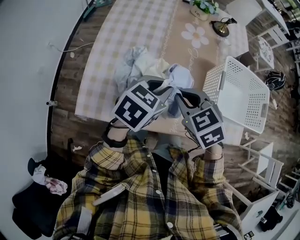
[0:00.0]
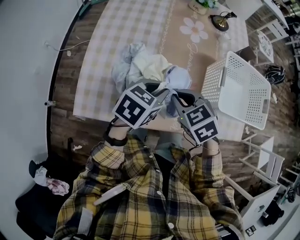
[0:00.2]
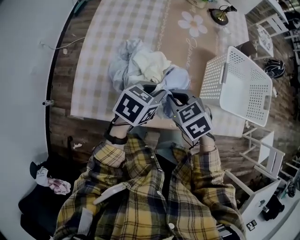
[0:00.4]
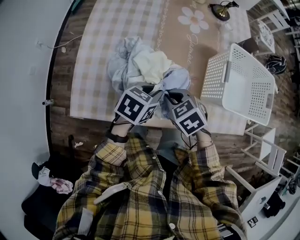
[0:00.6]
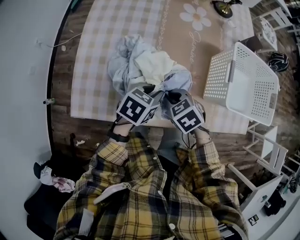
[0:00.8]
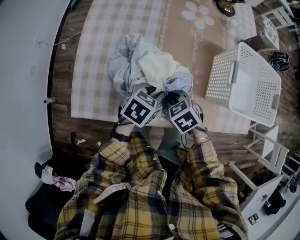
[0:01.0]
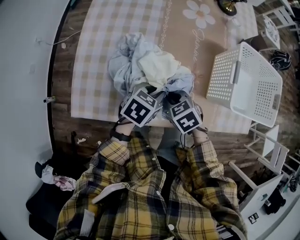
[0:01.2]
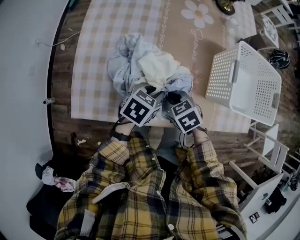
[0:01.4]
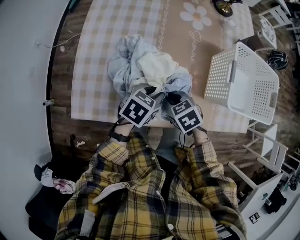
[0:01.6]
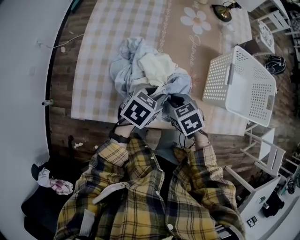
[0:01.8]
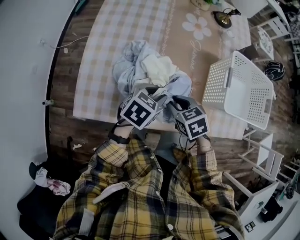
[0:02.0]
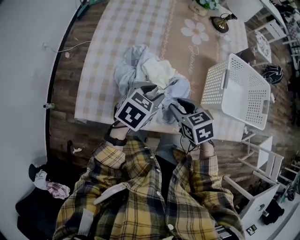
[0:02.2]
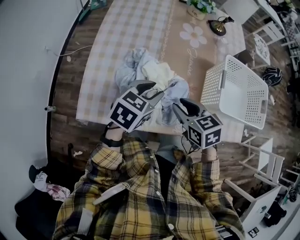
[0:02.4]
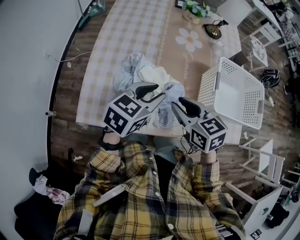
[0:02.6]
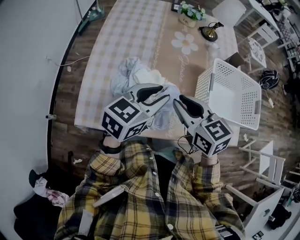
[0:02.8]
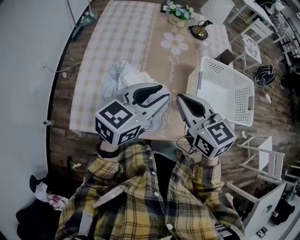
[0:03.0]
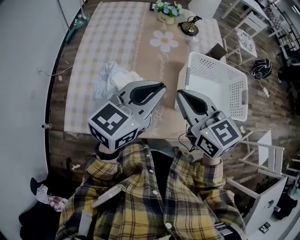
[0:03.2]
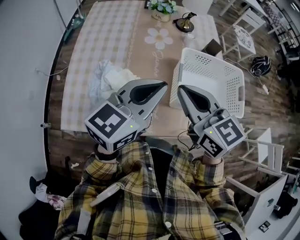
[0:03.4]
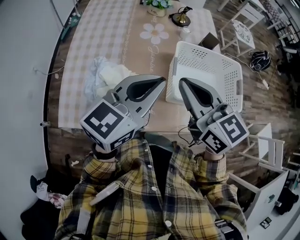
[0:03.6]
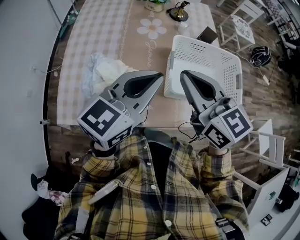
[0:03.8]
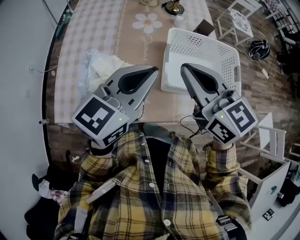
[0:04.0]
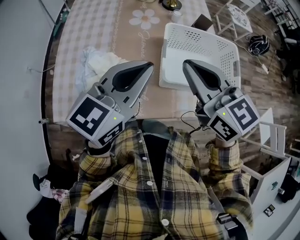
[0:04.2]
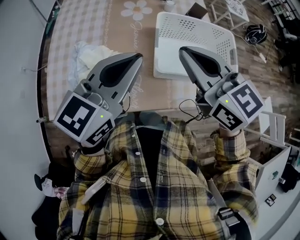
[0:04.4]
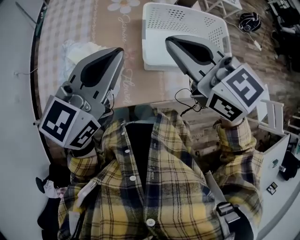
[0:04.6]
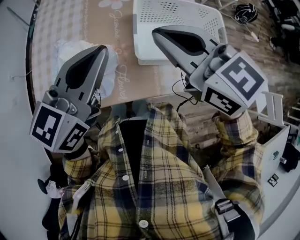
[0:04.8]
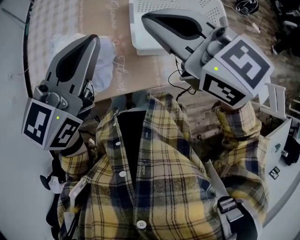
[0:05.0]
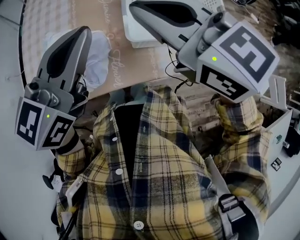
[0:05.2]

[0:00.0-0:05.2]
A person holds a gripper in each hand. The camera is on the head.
0:00.0 to 0:01.8: Both grippers move downward, approximately 15 cm.
0:01.8 to 0:03.4: The left gripper heads upward, covering approximately 30 cm, and angles its fingers upward, by about 40 degrees; the right gripper heads upward and to the right, covering some 35 cm, and tips its fingers upward by roughly 40 degrees.
0:03.4 to 0:05.2: The right gripper changes place by approximately 5 cm.

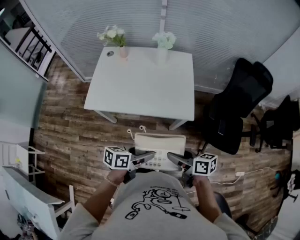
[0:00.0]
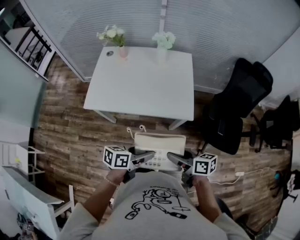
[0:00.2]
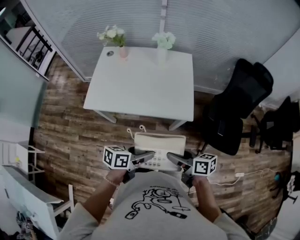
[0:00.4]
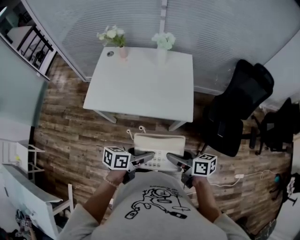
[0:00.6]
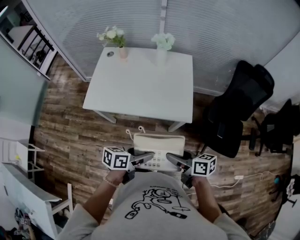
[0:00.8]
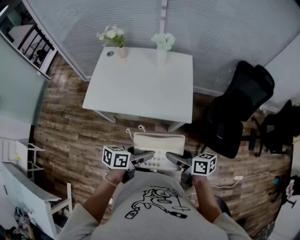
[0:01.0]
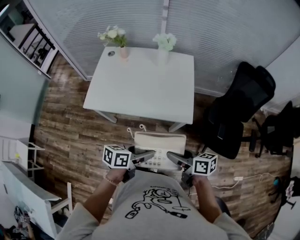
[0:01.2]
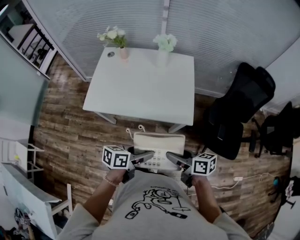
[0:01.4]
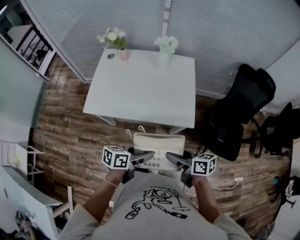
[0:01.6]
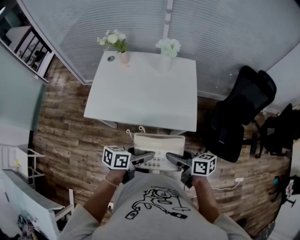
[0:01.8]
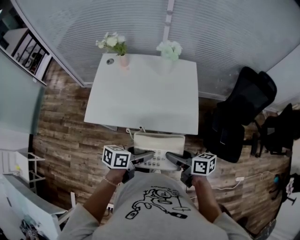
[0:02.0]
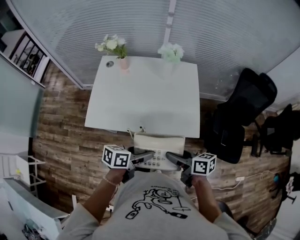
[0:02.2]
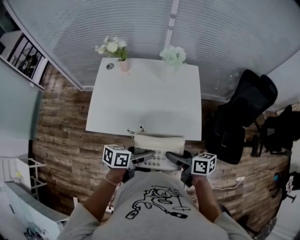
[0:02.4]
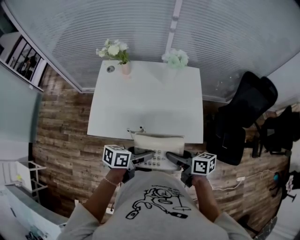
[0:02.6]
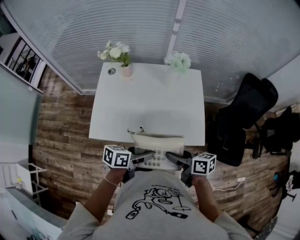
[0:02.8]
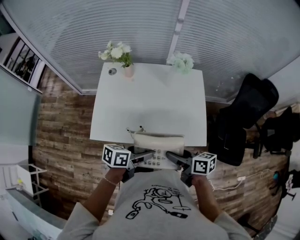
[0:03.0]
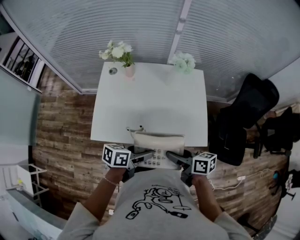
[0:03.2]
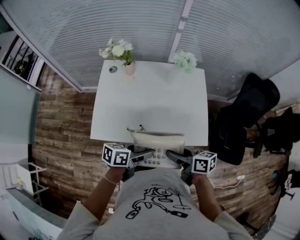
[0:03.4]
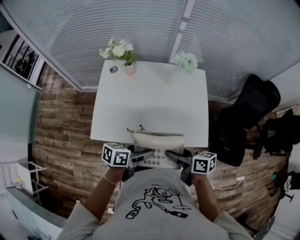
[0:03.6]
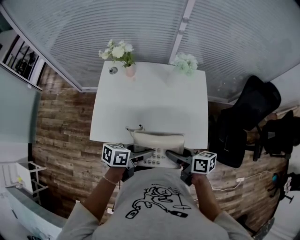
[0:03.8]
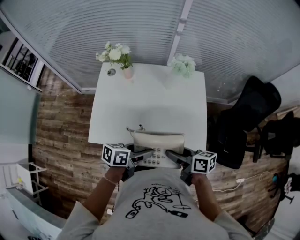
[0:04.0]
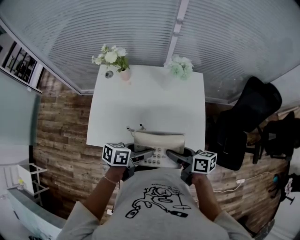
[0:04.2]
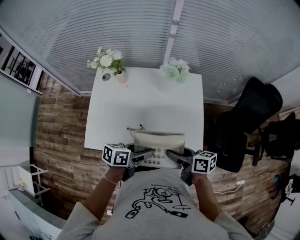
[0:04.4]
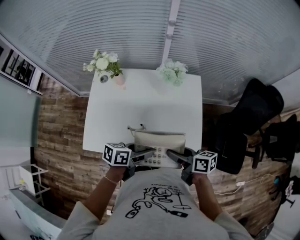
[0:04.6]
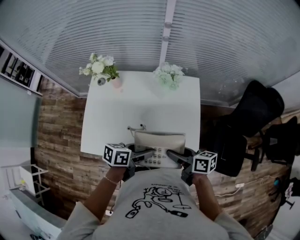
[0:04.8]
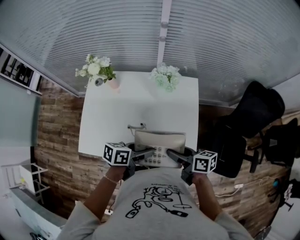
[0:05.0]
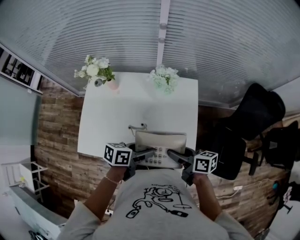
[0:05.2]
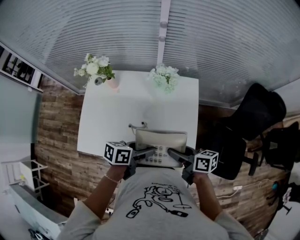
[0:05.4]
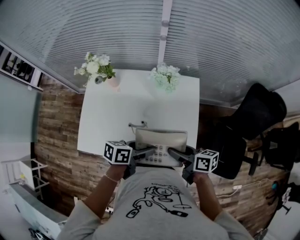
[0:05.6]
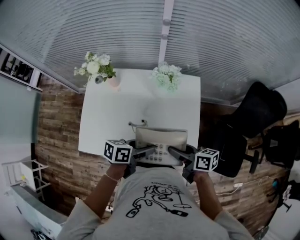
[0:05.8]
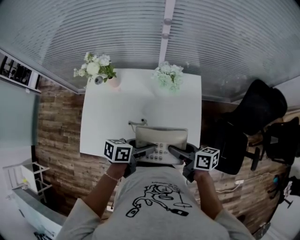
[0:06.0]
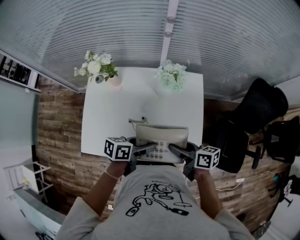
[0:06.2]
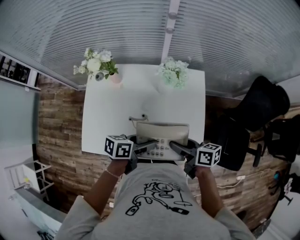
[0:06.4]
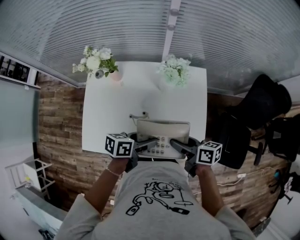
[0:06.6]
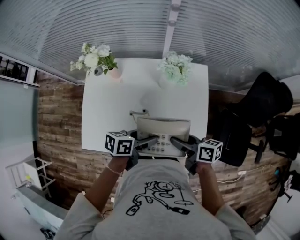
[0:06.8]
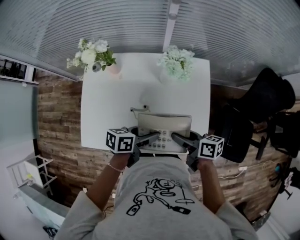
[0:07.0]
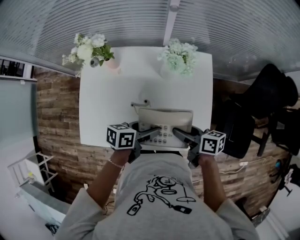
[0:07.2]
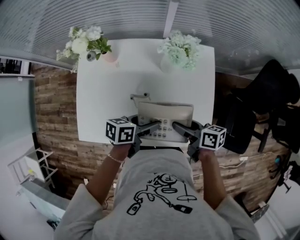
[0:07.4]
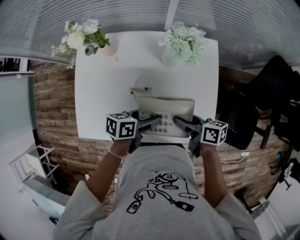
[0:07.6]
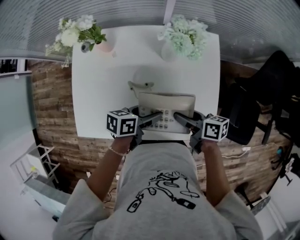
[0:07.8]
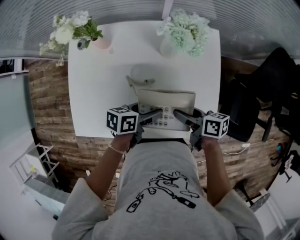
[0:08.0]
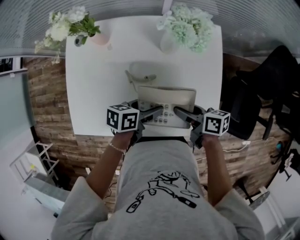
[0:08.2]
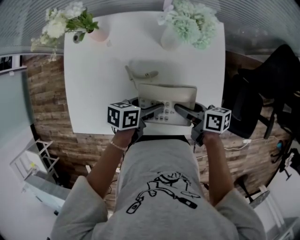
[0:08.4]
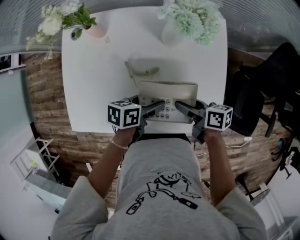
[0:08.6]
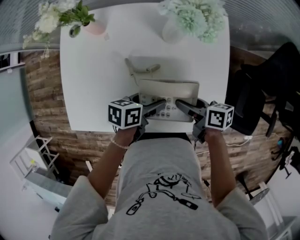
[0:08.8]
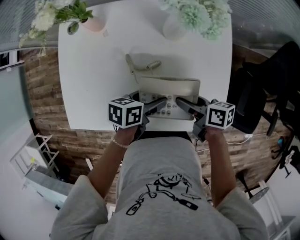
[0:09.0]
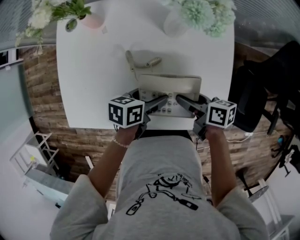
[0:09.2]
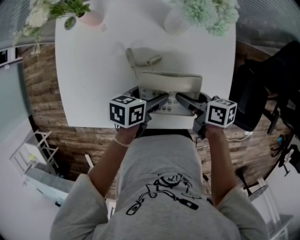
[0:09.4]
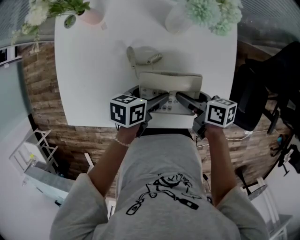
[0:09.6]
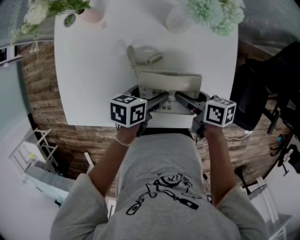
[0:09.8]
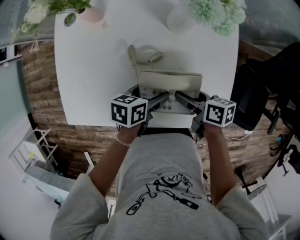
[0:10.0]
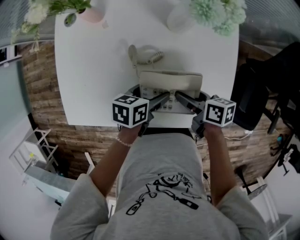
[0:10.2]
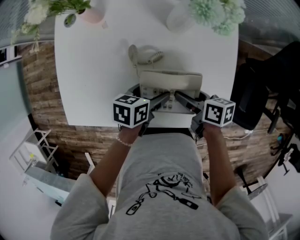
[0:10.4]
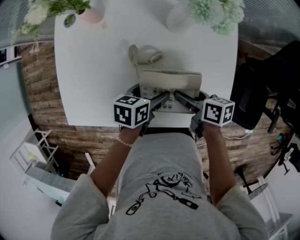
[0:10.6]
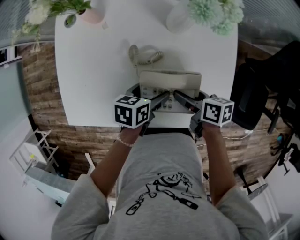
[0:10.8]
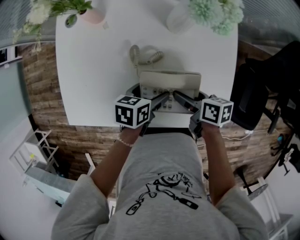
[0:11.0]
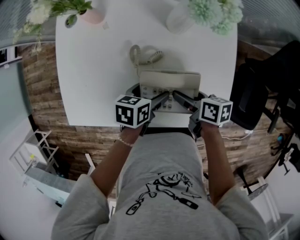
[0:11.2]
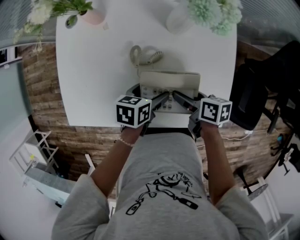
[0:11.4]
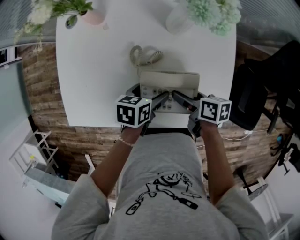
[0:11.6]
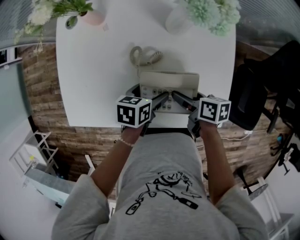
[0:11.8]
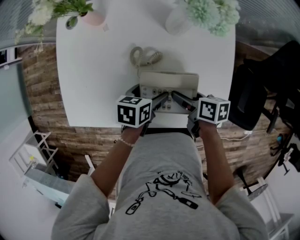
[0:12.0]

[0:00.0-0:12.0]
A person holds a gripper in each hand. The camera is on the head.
0:00.0 to 0:01.6: There are only small adjustments of the grippers.
0:01.6 to 0:03.0: The two grippers go about 20 cm forward and to the left.
0:03.0 to 0:04.4: The two grippers go approximately 10 cm forward.
0:04.4 to 0:06.0: The two grippers go roughly 10 cm forward.
0:06.0 to 0:07.6: The grippers both shift downward by some 10 cm.
0:07.6 to 0:09.0: Both grippers move downward, approximately 5 cm.
0:09.0 to 0:12.0: The grippers stay close to where they were, moving slightly.

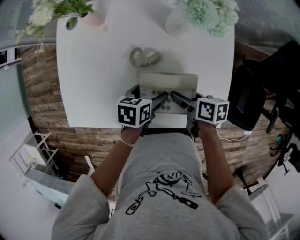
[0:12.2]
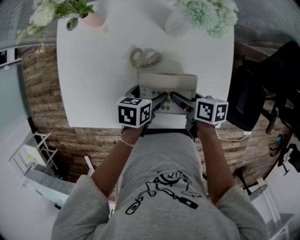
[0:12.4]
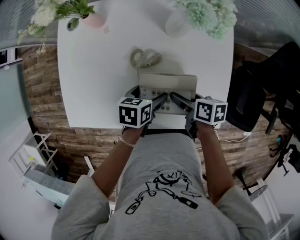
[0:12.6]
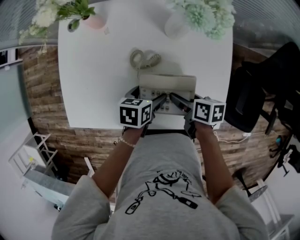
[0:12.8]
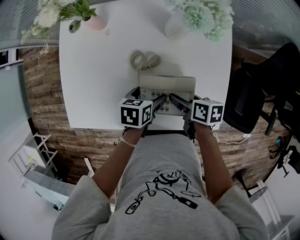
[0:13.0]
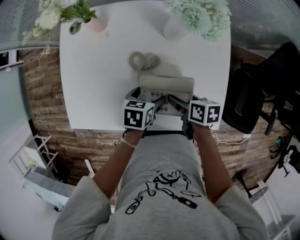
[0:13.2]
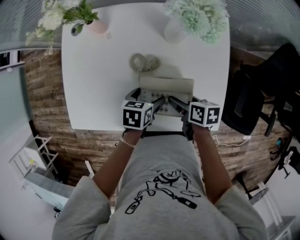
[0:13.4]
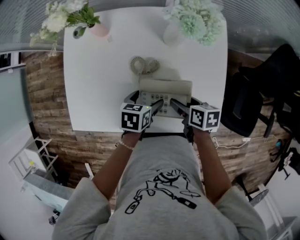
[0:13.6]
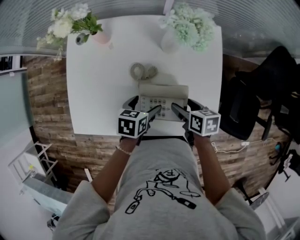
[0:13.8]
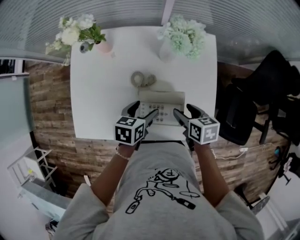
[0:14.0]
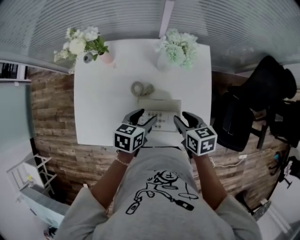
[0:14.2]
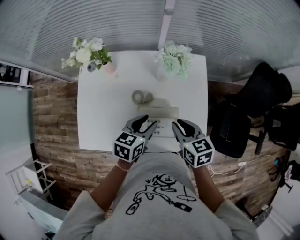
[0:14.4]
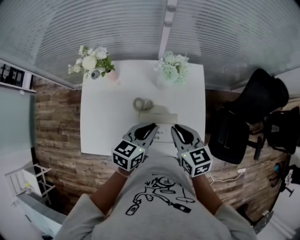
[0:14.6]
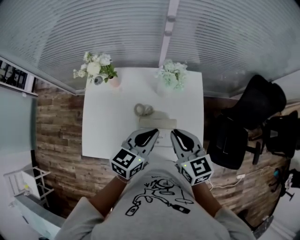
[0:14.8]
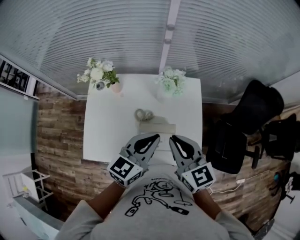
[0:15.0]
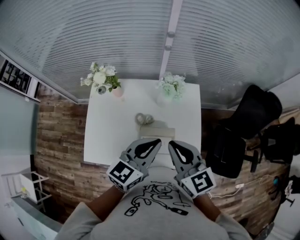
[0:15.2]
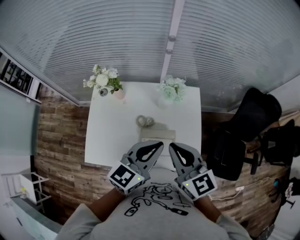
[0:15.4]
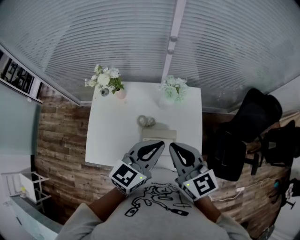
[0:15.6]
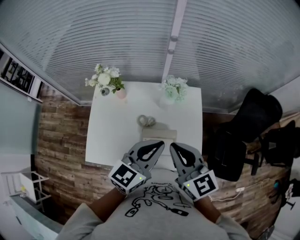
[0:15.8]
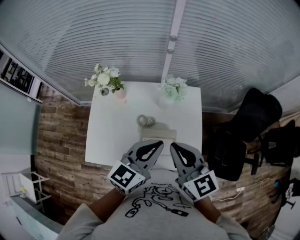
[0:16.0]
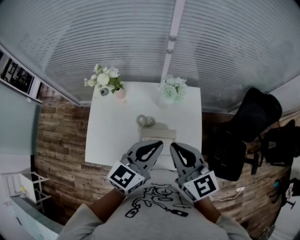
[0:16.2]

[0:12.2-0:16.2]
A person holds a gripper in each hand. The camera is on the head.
0:12.2 to 0:13.6: There are only small adjustments of the grippers.
0:13.6 to 0:14.8: The two grippers go some 30 cm upward. The right gripper swivels about 50 degrees, and closes its fingers, while the left gripper tips its fingers upward by some 40 degrees, and closes.
0:14.8 to 0:16.2: The two grippers go roughly 10 cm upward.

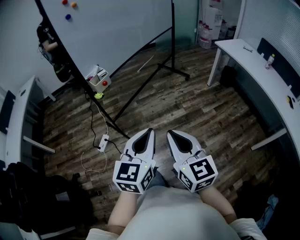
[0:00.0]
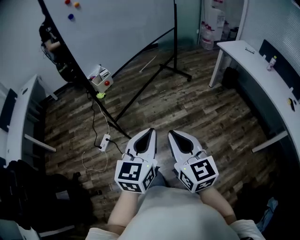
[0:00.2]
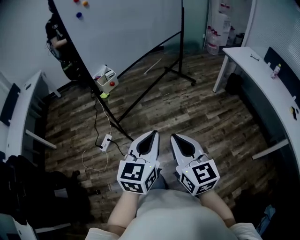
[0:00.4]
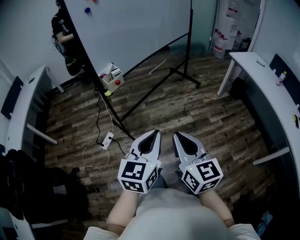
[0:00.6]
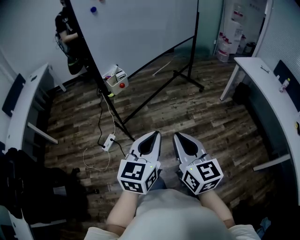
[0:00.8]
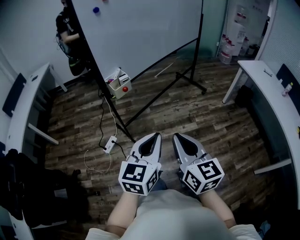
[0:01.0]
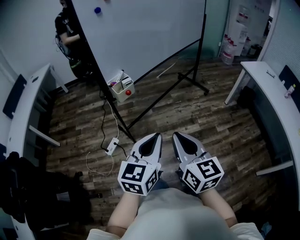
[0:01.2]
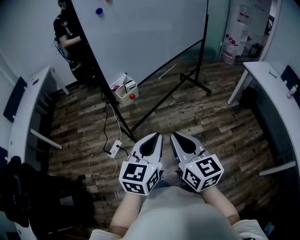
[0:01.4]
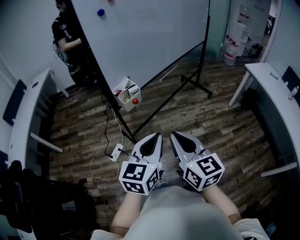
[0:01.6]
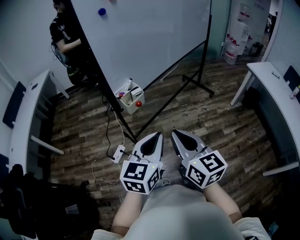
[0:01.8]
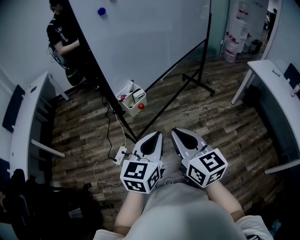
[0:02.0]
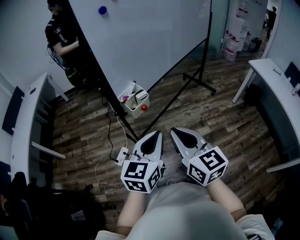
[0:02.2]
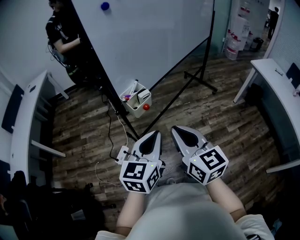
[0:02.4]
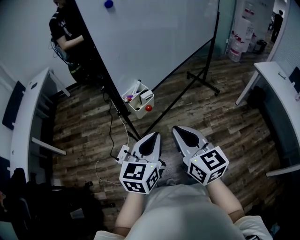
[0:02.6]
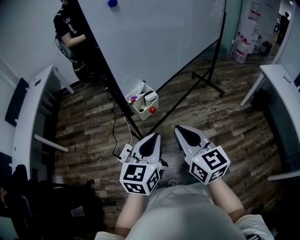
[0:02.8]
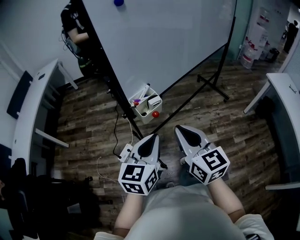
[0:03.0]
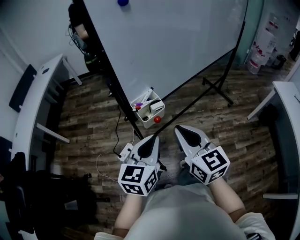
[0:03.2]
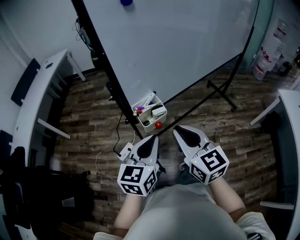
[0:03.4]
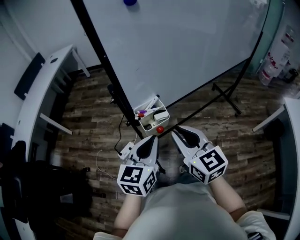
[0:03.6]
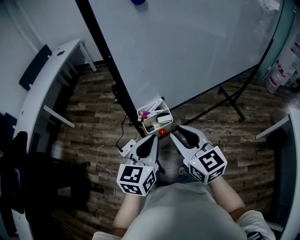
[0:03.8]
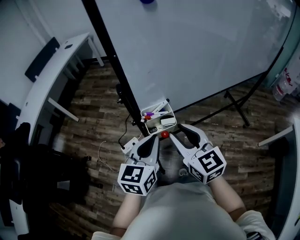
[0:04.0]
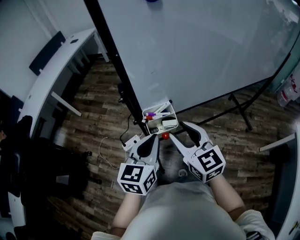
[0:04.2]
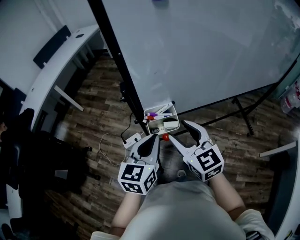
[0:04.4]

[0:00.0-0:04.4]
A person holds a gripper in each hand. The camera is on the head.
0:00.0 to 0:01.4: Both grippers travel together forward and to the left, approximately 15 cm.
0:01.4 to 0:03.0: Both grippers move forward and to the left, some 20 cm.
0:03.0 to 0:04.4: The left gripper ends up roughly 10 cm from where it was, and changes its angle by roughly 30 degrees. Meanwhile the right gripper moves roughly 15 cm, swivels about 30 degrees, and opens.